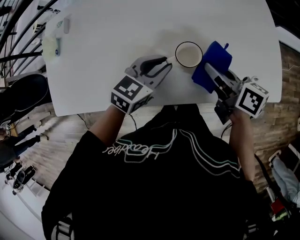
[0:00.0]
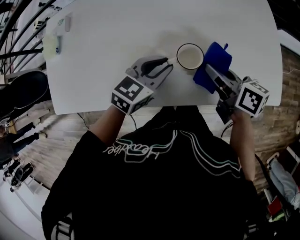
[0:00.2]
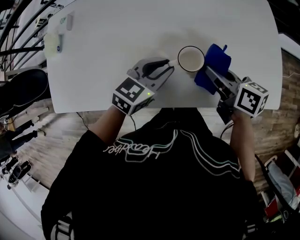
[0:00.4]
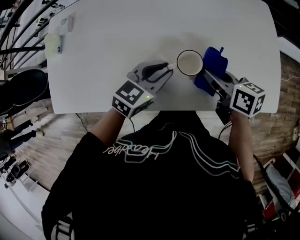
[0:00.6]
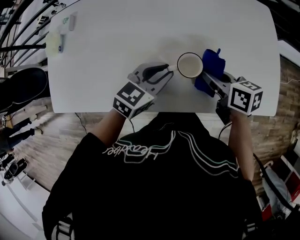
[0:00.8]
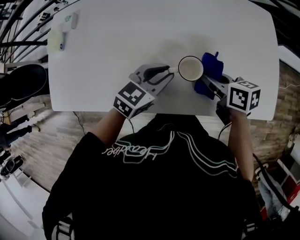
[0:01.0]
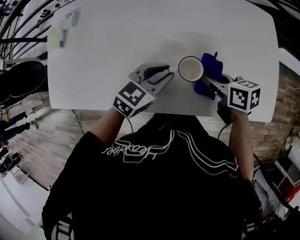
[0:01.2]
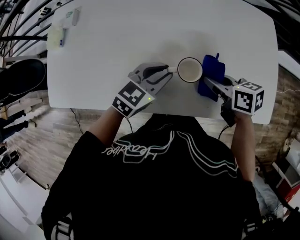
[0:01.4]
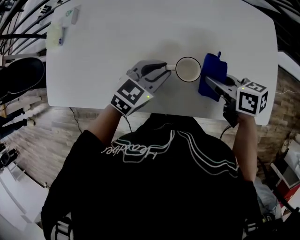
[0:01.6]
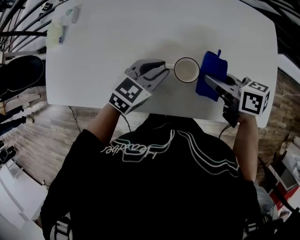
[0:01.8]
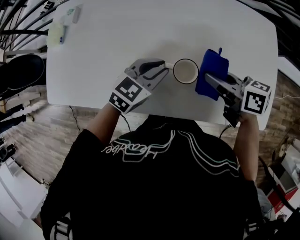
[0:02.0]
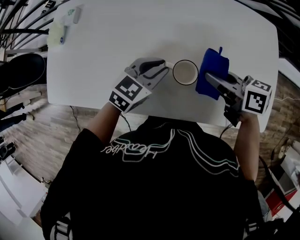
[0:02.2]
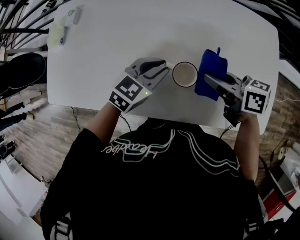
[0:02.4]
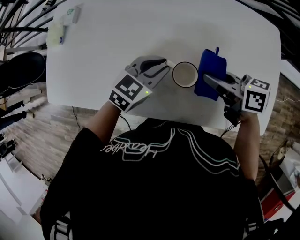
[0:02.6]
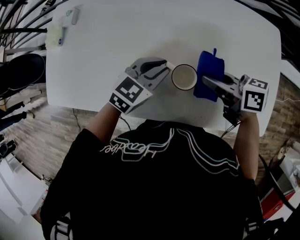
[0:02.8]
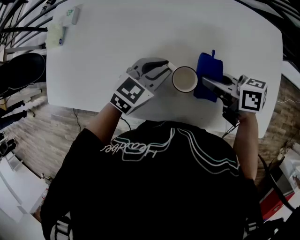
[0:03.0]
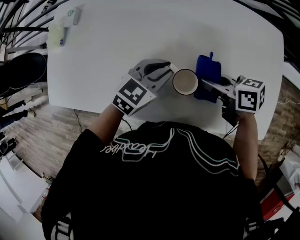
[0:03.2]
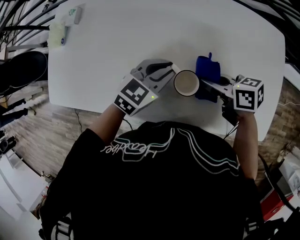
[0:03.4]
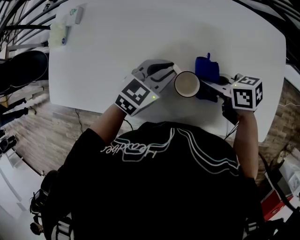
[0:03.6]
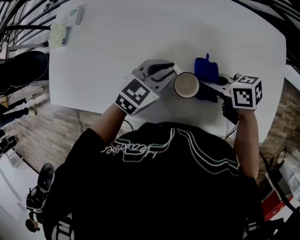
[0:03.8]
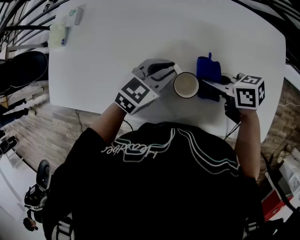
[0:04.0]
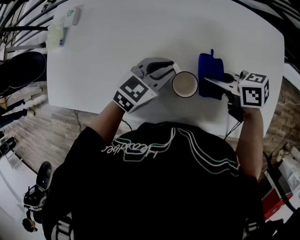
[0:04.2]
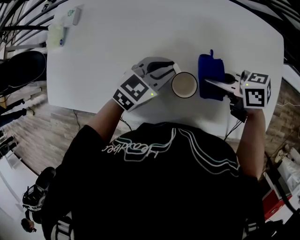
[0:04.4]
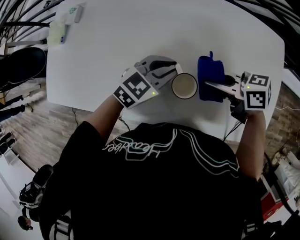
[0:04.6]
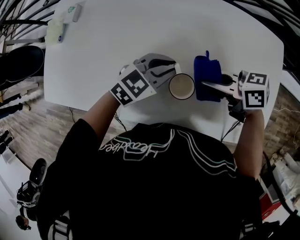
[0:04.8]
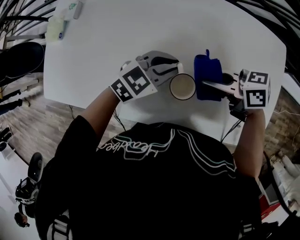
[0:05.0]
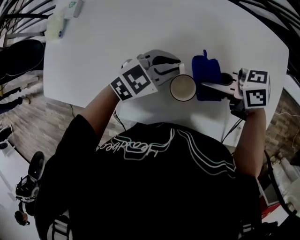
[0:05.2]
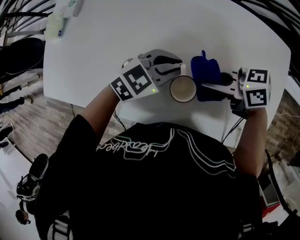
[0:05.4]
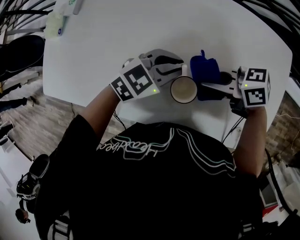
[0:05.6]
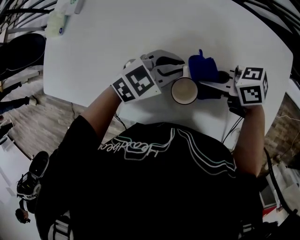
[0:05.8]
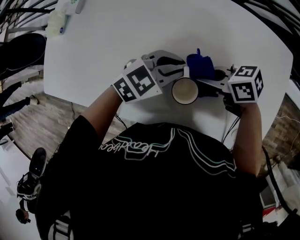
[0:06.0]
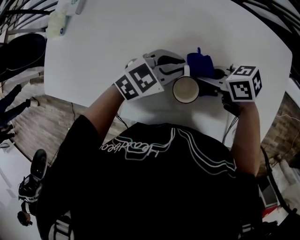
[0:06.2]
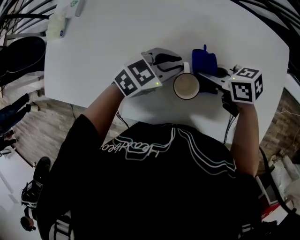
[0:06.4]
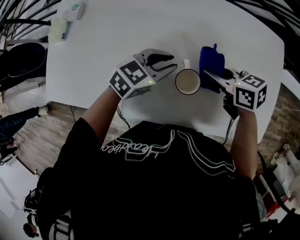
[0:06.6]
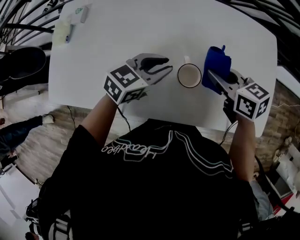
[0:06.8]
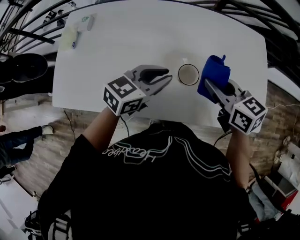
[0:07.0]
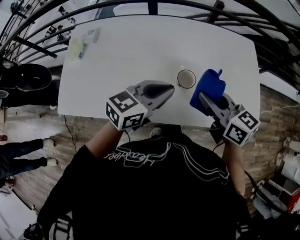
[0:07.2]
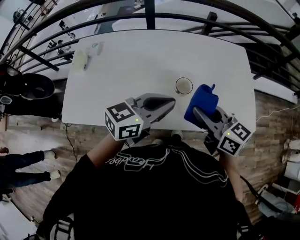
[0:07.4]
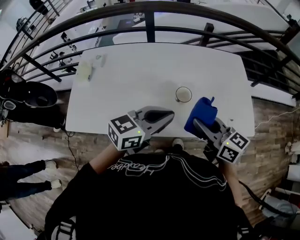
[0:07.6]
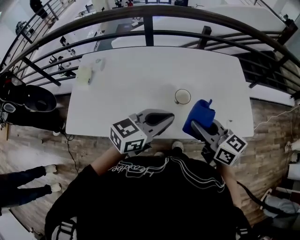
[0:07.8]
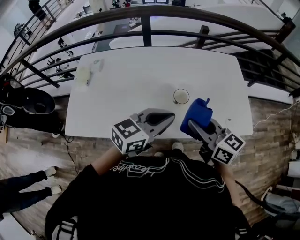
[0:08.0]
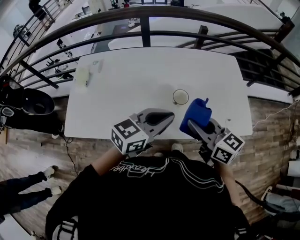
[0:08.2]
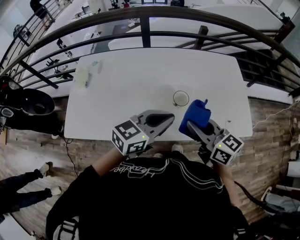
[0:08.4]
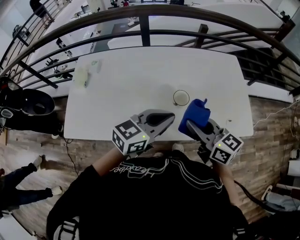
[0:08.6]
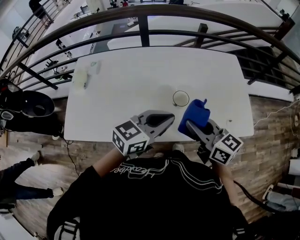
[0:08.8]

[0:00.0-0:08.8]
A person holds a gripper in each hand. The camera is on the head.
0:00.0 to 0:01.4: The right gripper rotates approximately 30 degrees.
0:01.4 to 0:03.0: The right gripper shifts by some 5 cm. The left gripper shifts by roughly 5 cm.
0:03.0 to 0:04.4: The grippers move only a little.
0:04.4 to 0:05.8: The grippers move only a little.
0:05.8 to 0:07.4: Both grippers travel together upward, roughly 20 cm. The right gripper changes its angle by some 60 degrees. The left gripper rotates approximately 30 degrees.
0:07.4 to 0:08.8: The left gripper changes place by approximately 5 cm; the right gripper shifts by some 5 cm.

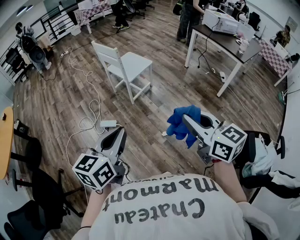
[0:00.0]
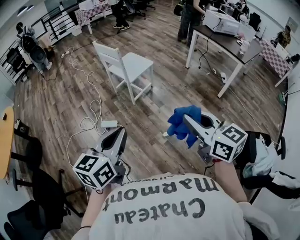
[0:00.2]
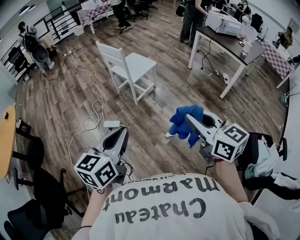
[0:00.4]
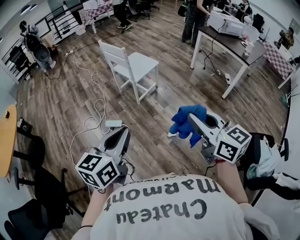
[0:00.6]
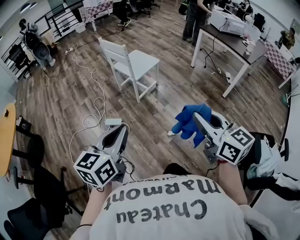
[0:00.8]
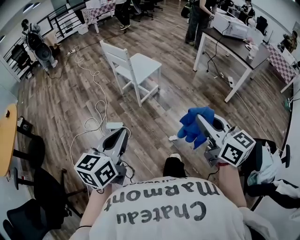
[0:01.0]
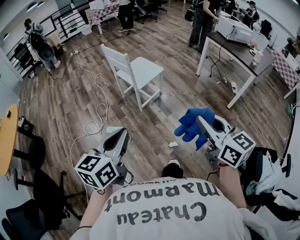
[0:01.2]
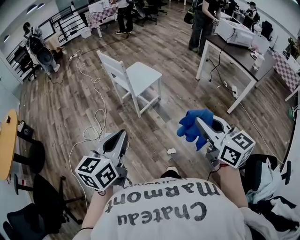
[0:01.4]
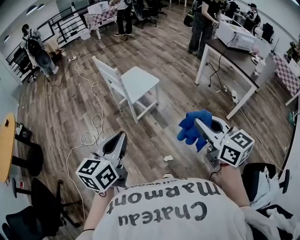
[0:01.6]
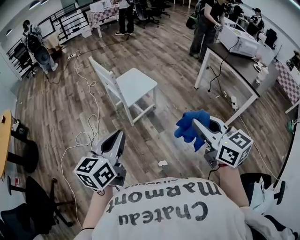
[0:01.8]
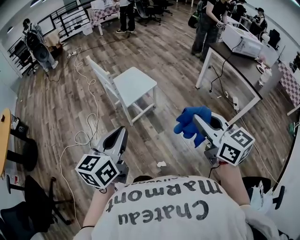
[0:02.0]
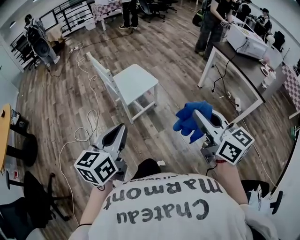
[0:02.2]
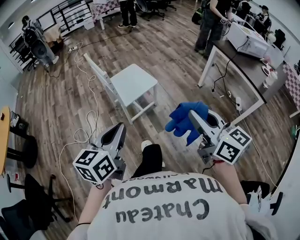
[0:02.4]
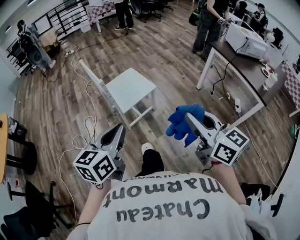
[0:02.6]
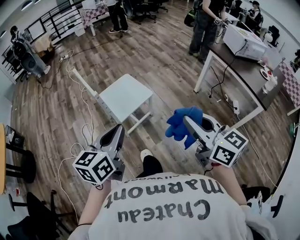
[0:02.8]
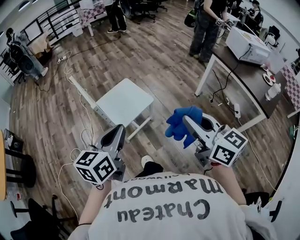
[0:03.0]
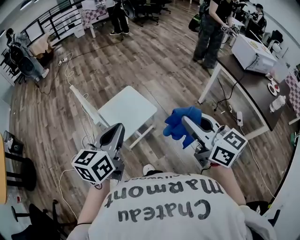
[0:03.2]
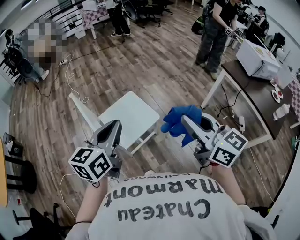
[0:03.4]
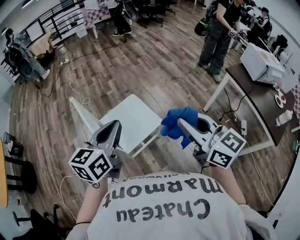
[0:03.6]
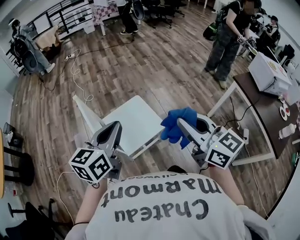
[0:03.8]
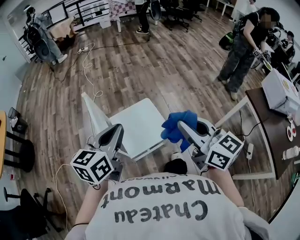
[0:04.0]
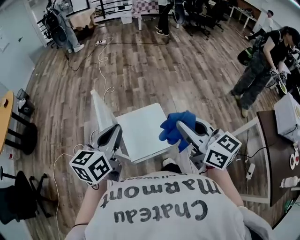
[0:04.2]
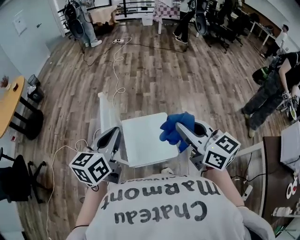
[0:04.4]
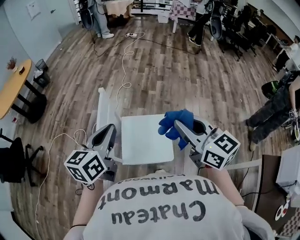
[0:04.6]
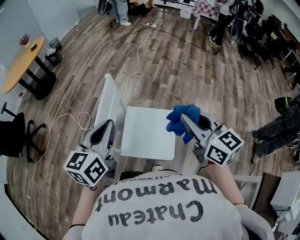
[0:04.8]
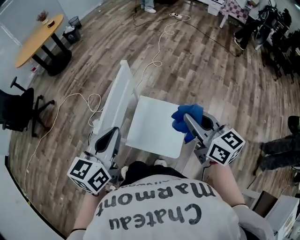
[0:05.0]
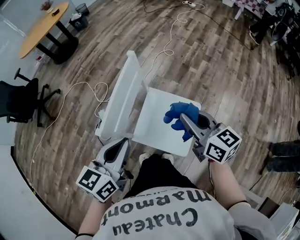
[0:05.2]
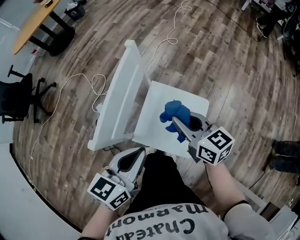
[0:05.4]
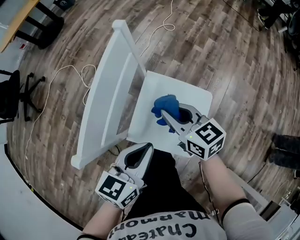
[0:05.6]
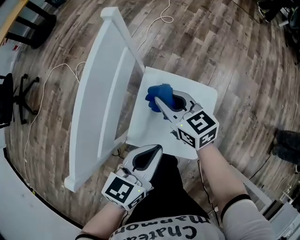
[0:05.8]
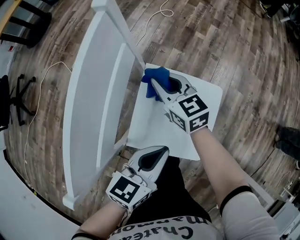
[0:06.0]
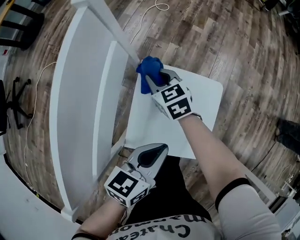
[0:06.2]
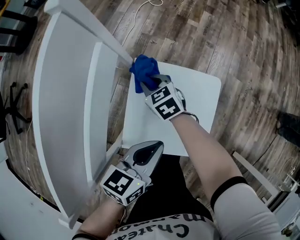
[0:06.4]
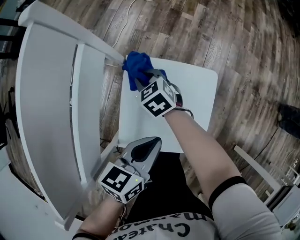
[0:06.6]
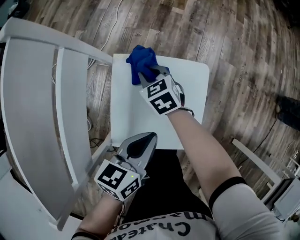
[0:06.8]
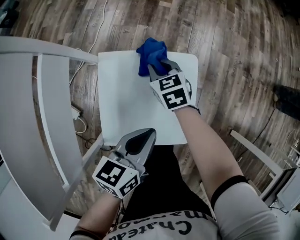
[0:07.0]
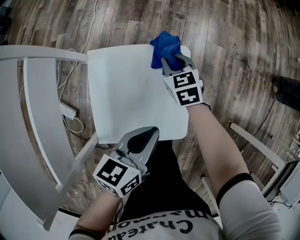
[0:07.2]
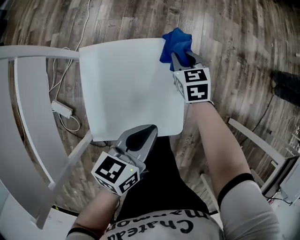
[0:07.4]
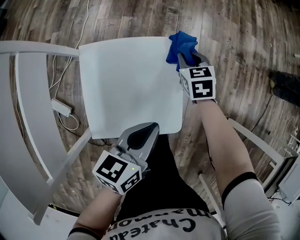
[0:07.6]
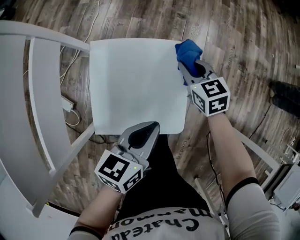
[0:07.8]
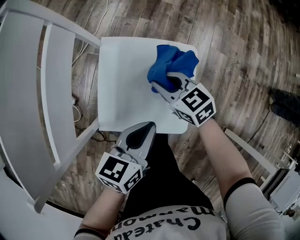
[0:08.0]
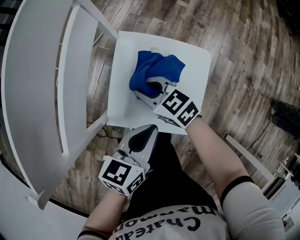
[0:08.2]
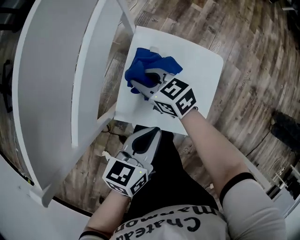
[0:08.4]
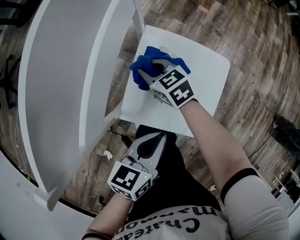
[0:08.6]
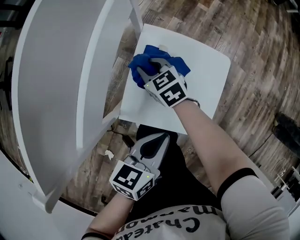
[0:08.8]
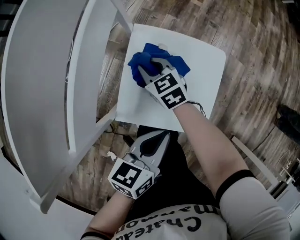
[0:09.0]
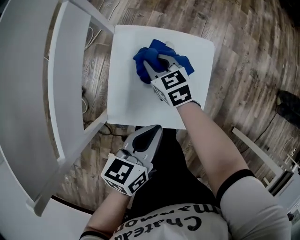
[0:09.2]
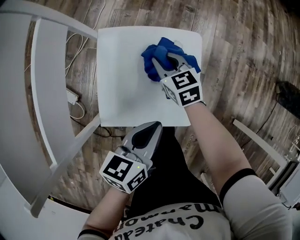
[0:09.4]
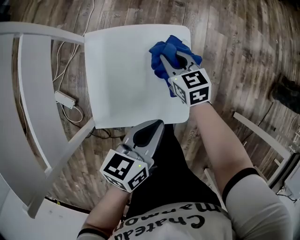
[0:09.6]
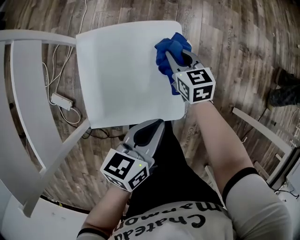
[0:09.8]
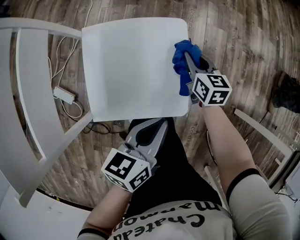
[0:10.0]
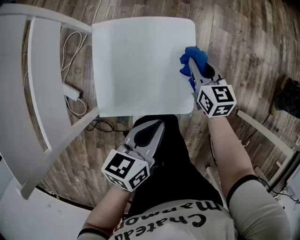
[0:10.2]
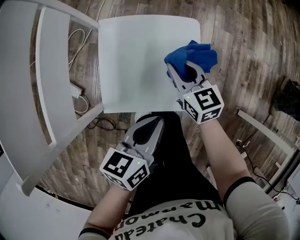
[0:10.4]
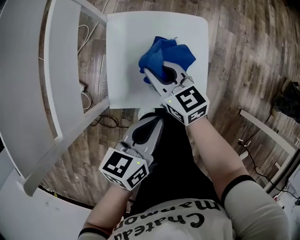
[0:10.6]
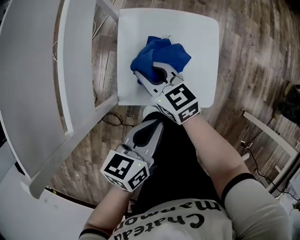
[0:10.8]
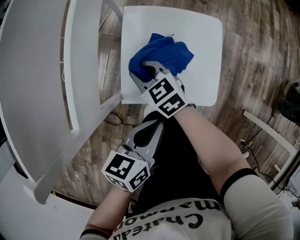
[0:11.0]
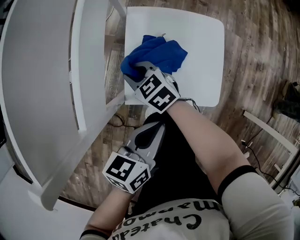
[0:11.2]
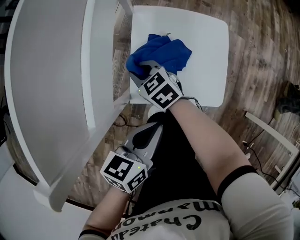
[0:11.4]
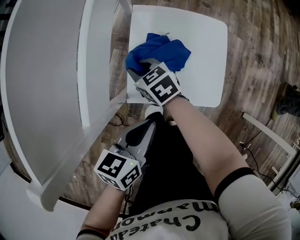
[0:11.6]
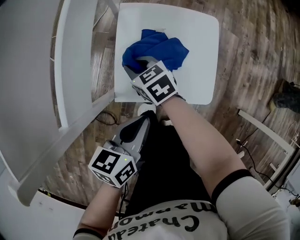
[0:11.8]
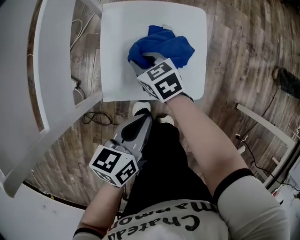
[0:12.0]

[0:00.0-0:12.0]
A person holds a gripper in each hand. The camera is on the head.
0:00.0 to 0:01.6: The left gripper is displaced forward by approximately 20 cm; the right gripper heads forward and to the right, covering approximately 20 cm.
0:01.6 to 0:03.0: Both grippers travel together forward, some 30 cm.
0:03.0 to 0:04.4: The right gripper shifts by some 40 cm, and changes its angle by about 40 degrees; the left gripper moves roughly 30 cm, and swivels about 30 degrees.
0:04.4 to 0:06.0: Both grippers move downward, some 40 cm. The right gripper rotates approximately 30 degrees.
0:06.0 to 0:07.6: The right gripper ends up approximately 35 cm from where it was, and turns by roughly 40 degrees. Meanwhile the left gripper ends up about 15 cm from where it was.
0:07.6 to 0:09.0: The left gripper shifts by roughly 10 cm, while the right gripper changes place by approximately 35 cm, and changes its angle by approximately 40 degrees.
0:09.0 to 0:10.4: The right gripper rotates roughly 30 degrees.
0:10.4 to 0:12.0: The left gripper heads to the left, covering about 5 cm, while the right gripper shifts roughly 15 cm to the left and downward, and swivels some 20 degrees.

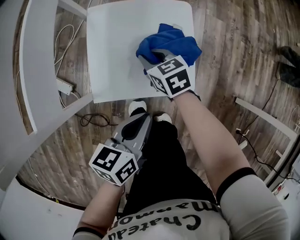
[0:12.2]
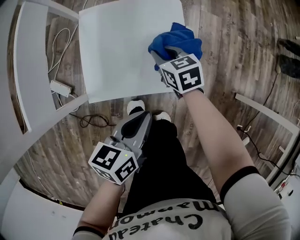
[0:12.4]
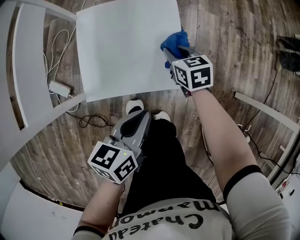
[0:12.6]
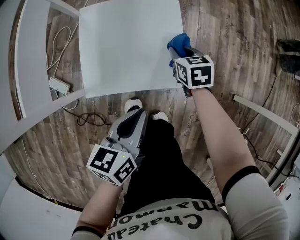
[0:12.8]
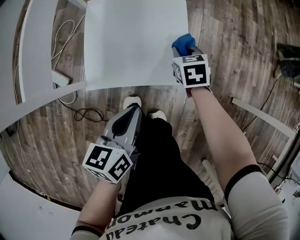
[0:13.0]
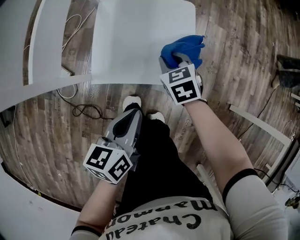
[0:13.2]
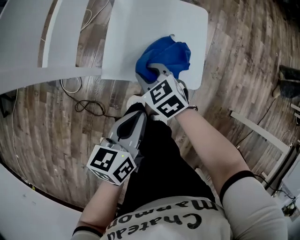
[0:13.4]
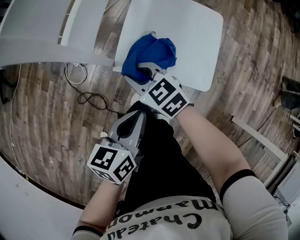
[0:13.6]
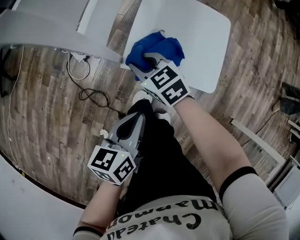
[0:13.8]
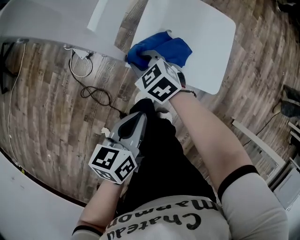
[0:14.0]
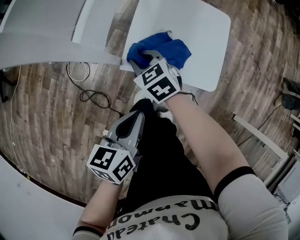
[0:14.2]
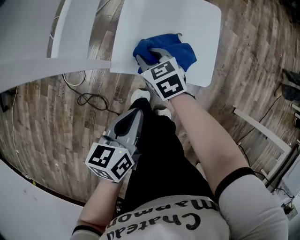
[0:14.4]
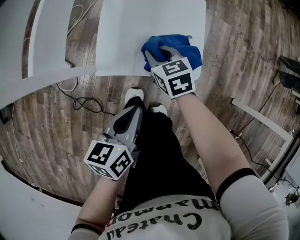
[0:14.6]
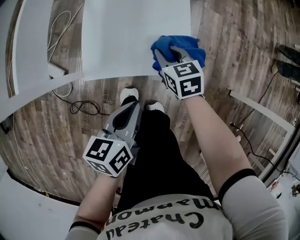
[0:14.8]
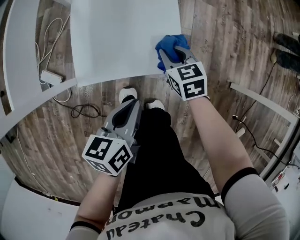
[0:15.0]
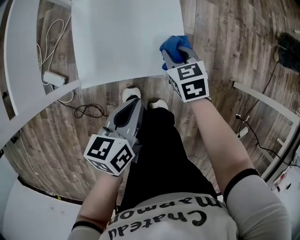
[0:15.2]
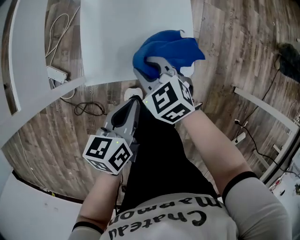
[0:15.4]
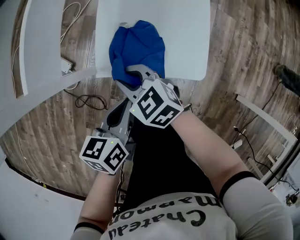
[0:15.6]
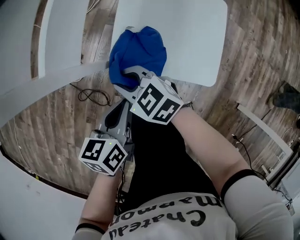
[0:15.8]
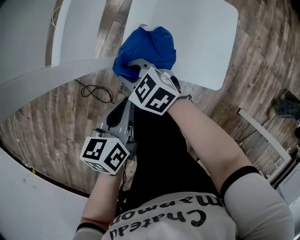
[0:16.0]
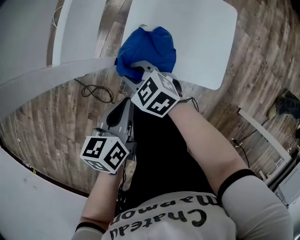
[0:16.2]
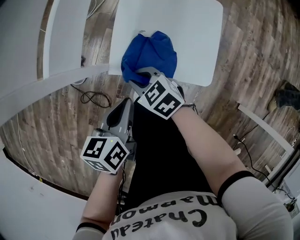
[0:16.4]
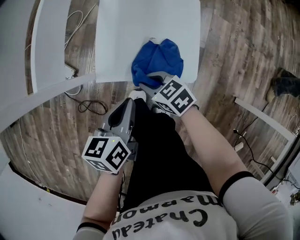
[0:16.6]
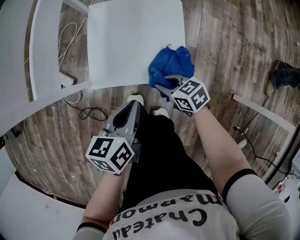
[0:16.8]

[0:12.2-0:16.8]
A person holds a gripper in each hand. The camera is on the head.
0:12.2 to 0:13.8: The right gripper moves about 20 cm, and changes its angle by some 30 degrees; the left gripper moves some 15 cm, and rotates some 20 degrees.
0:13.8 to 0:15.2: The left gripper moves some 15 cm, while the right gripper moves approximately 30 cm, and swivels approximately 40 degrees.
0:15.2 to 0:16.8: The right gripper swivels approximately 30 degrees.
